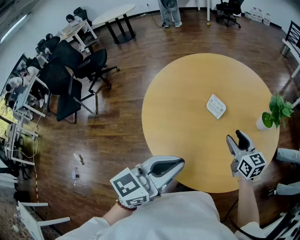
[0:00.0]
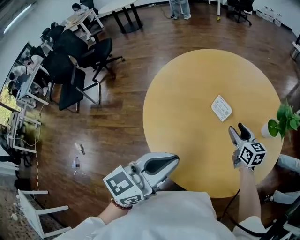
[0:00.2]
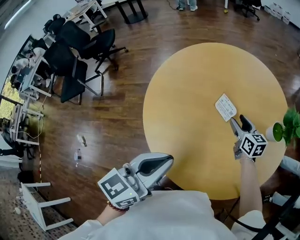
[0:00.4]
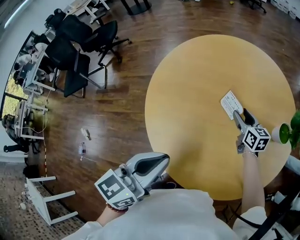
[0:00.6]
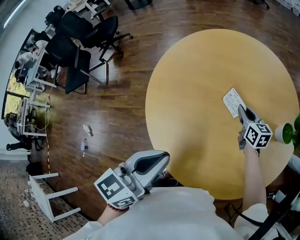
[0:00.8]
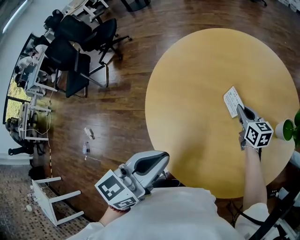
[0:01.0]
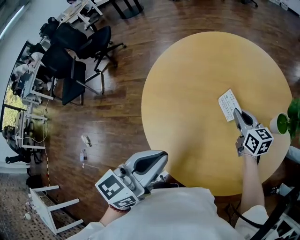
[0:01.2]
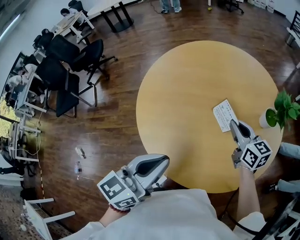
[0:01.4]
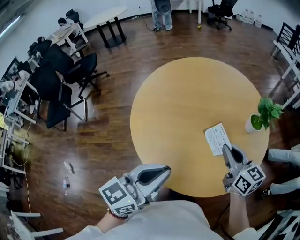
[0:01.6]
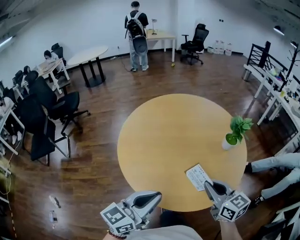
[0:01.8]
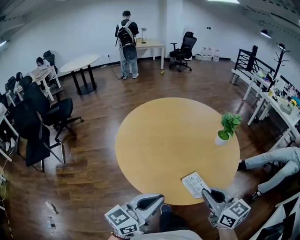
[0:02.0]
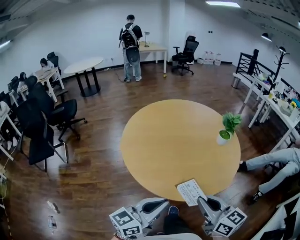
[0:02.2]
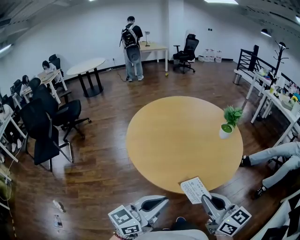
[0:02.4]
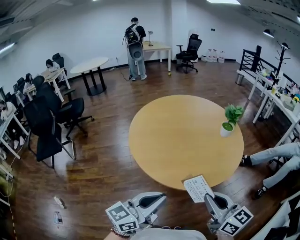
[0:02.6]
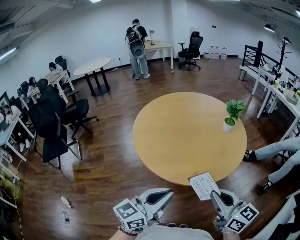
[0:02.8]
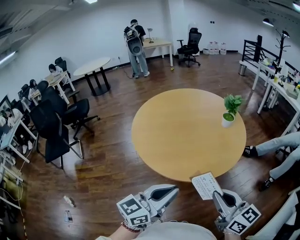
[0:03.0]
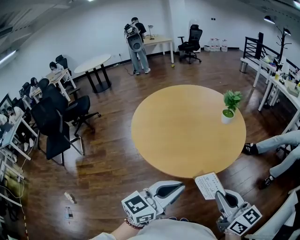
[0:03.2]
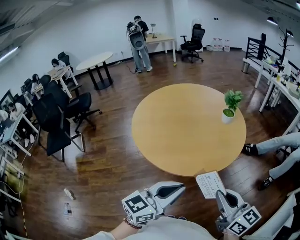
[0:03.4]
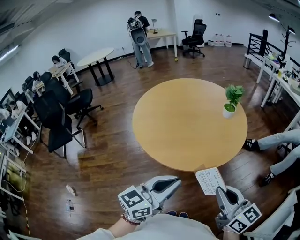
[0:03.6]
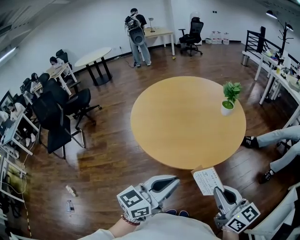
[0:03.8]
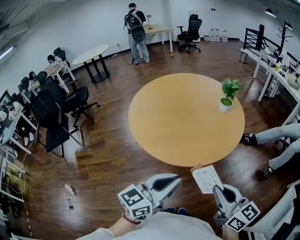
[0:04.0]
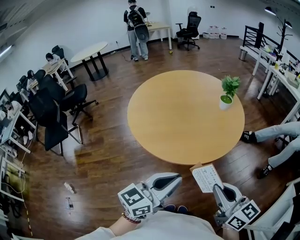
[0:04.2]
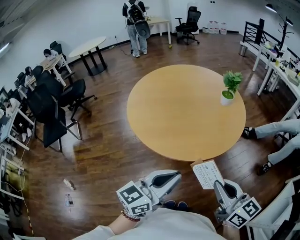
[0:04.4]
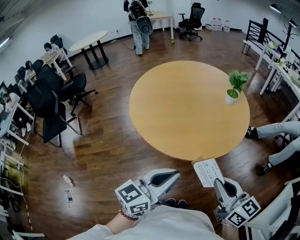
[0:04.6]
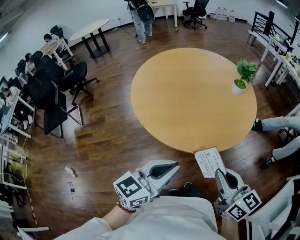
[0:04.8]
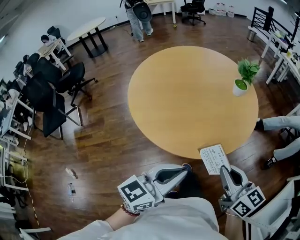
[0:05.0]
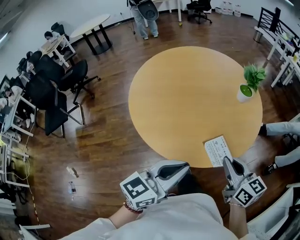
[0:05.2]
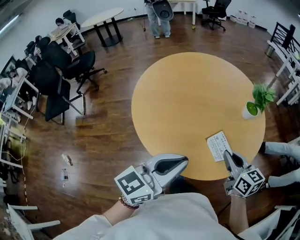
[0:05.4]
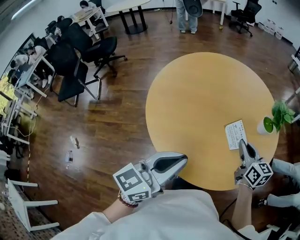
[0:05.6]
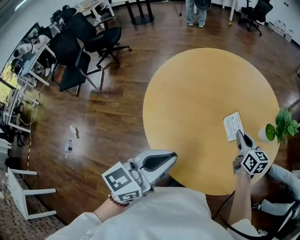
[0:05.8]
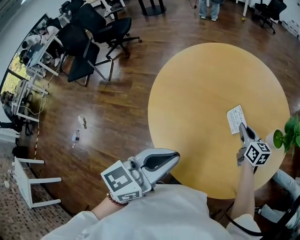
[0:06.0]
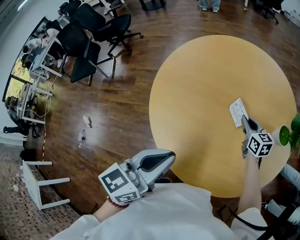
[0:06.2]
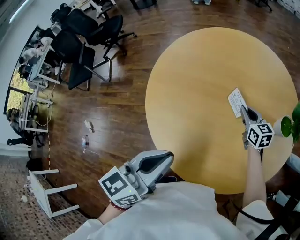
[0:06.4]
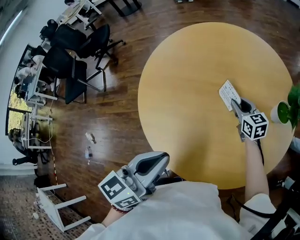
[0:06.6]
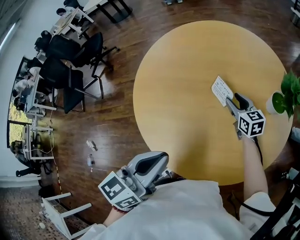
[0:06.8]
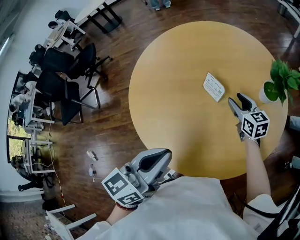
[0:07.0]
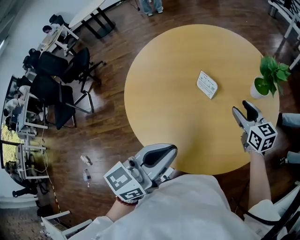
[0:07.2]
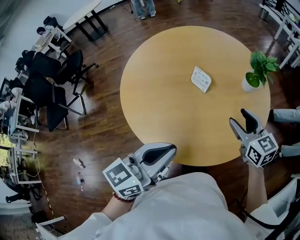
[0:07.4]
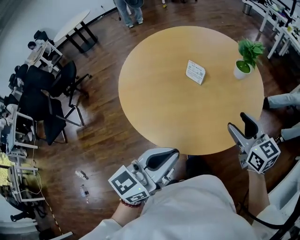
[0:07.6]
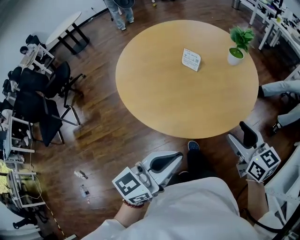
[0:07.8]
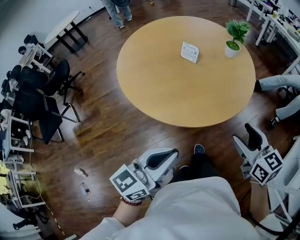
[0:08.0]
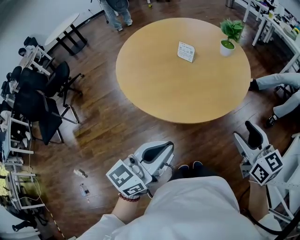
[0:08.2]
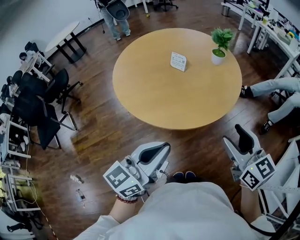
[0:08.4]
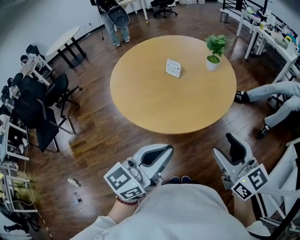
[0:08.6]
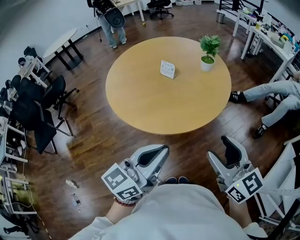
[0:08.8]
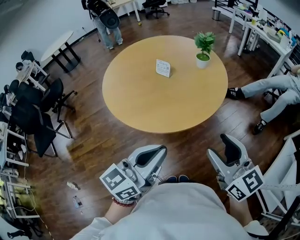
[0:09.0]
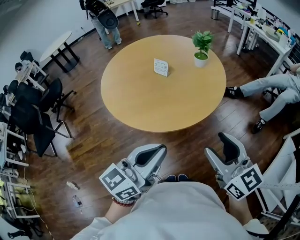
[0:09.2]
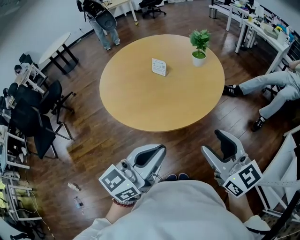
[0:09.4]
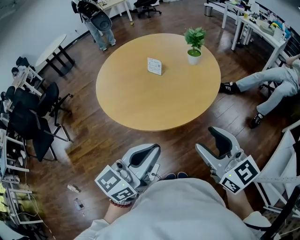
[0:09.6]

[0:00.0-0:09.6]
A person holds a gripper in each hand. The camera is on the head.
0.0 to 1.6 s: The left gripper moves about 10 cm forward and comes back. The right gripper shifts about 5 cm upward, reaches roughly 20 cm forward, then returns, and closes its fingers.
1.6 to 3.2 s: The right gripper heads backward, covering about 40 cm; the left gripper heads backward, covering about 25 cm.
3.2 to 4.8 s: The right gripper moves forward and downward, approximately 10 cm. Meanwhile the left gripper goes roughly 10 cm downward and to the left.
4.8 to 6.4 s: The right gripper travels forward and downward by about 60 cm, and changes its angle by roughly 30 degrees. Meanwhile the left gripper travels forward by about 30 cm, and swivels roughly 30 degrees.
6.4 to 8.0 s: The right gripper moves about 60 cm, rotates approximately 20 degrees, and opens. The left gripper changes place by approximately 30 cm, and rotates about 40 degrees.
8.0 to 9.6 s: The left gripper goes some 15 cm to the right and upward. Meanwhile the right gripper goes some 15 cm upward and backward.

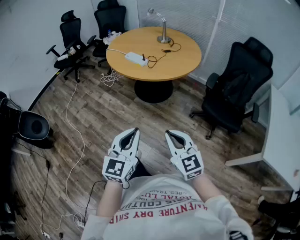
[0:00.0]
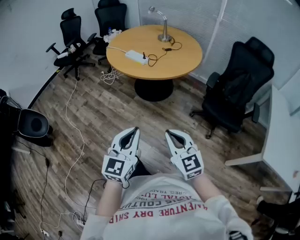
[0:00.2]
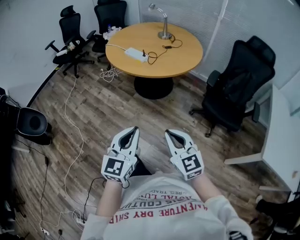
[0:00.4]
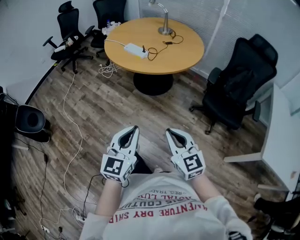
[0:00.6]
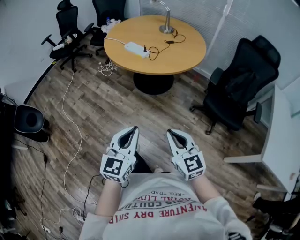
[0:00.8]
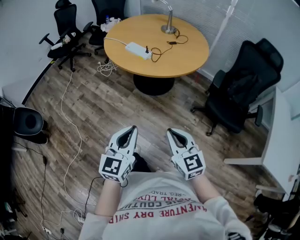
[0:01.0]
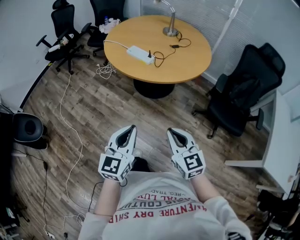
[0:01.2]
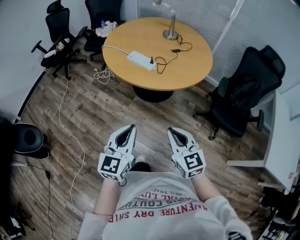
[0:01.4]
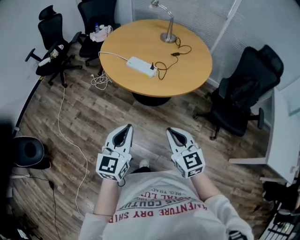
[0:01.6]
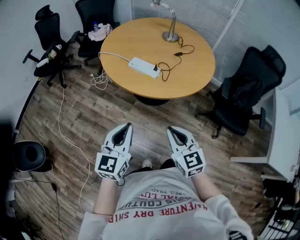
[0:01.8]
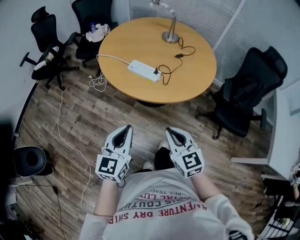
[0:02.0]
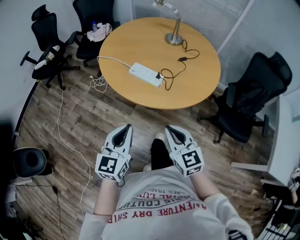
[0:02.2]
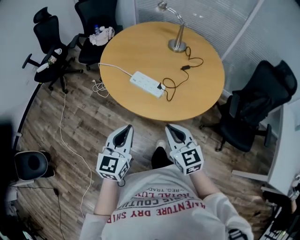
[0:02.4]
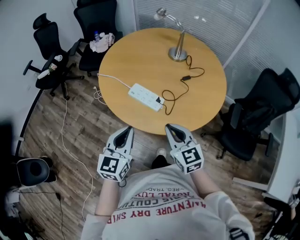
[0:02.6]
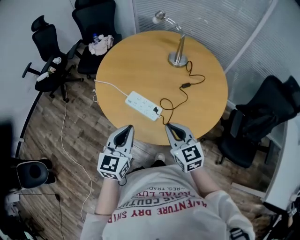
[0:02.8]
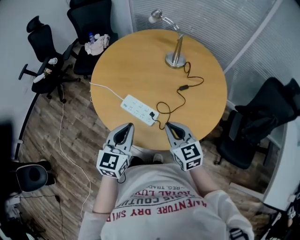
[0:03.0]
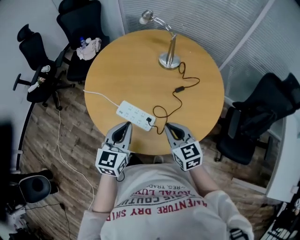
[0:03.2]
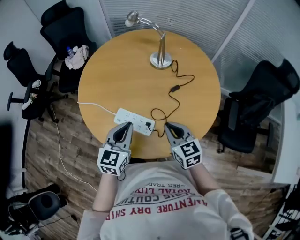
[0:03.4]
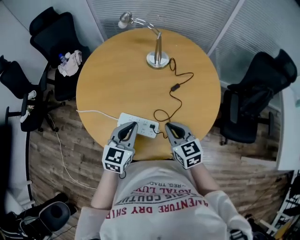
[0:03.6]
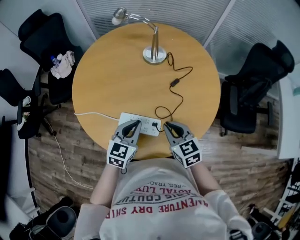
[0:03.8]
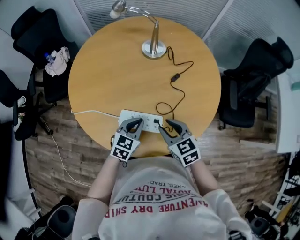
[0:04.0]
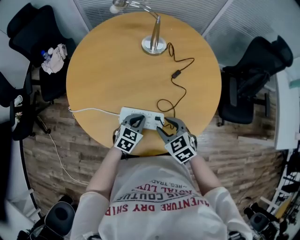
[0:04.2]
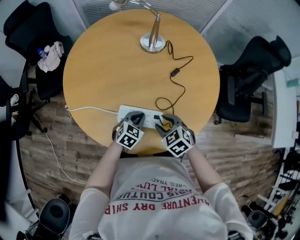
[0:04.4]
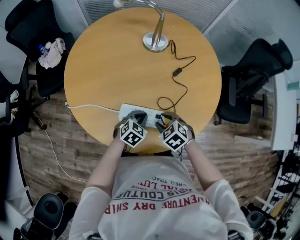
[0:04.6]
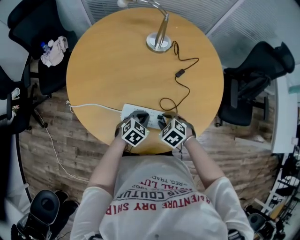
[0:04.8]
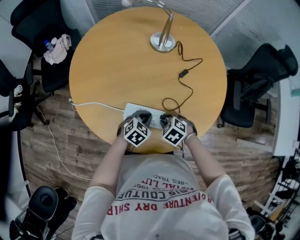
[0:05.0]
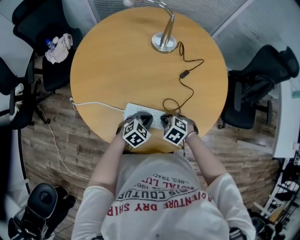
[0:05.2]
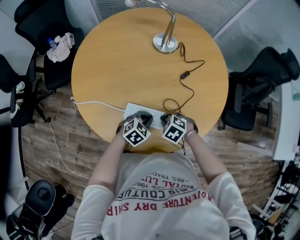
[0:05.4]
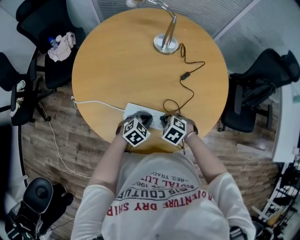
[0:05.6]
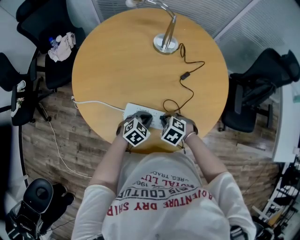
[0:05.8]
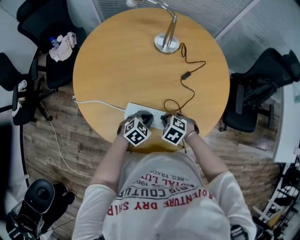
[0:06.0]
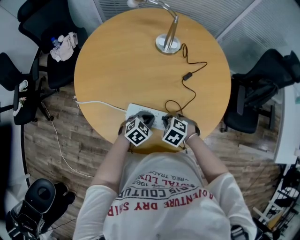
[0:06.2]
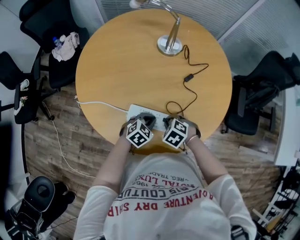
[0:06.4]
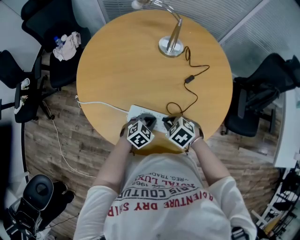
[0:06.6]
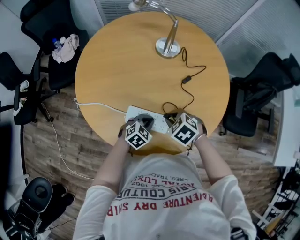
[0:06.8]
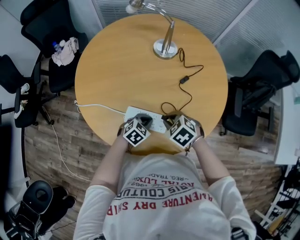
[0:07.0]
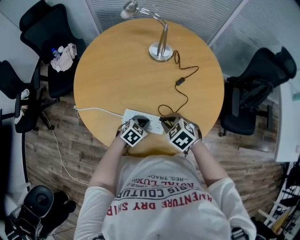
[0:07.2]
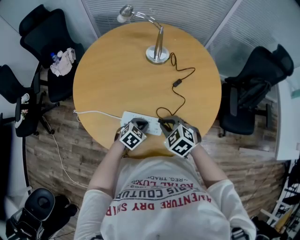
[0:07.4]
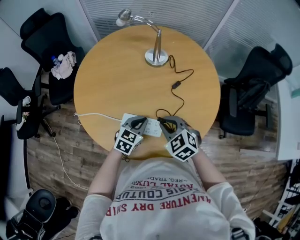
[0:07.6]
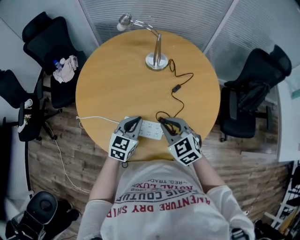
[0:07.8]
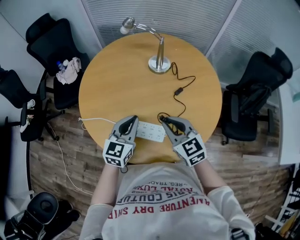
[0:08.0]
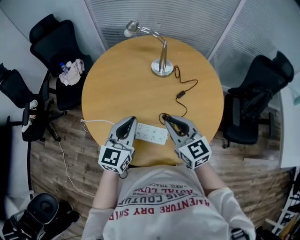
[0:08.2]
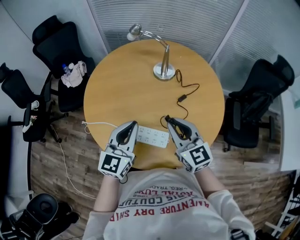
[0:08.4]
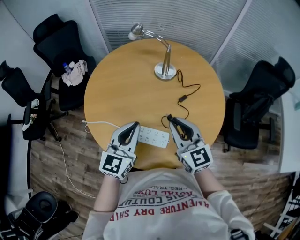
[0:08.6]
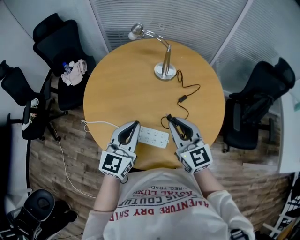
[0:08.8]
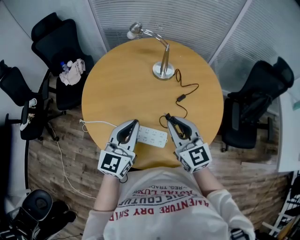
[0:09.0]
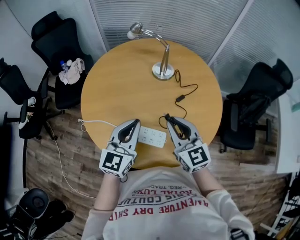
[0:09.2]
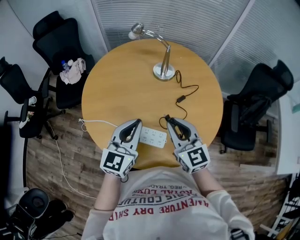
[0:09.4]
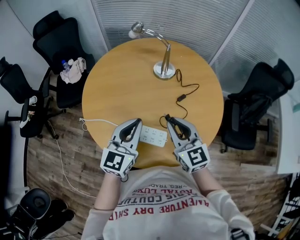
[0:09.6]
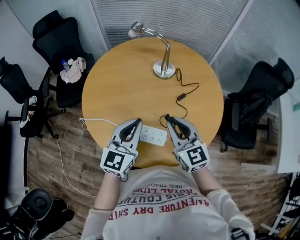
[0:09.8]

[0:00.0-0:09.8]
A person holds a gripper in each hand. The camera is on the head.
0.0 to 1.4 s: Both grippers travel together forward and to the left, about 20 cm.
1.4 to 2.8 s: Both grippers travel together forward, some 35 cm.
2.8 to 4.2 s: The left gripper heads downward, covering approximately 25 cm, and rotates some 50 degrees, while the right gripper moves downward, about 10 cm, swivels about 30 degrees, and opens.
4.2 to 5.6 s: The right gripper goes approximately 10 cm downward, rotates approximately 30 degrees, and closes up.
5.6 to 7.0 s: The right gripper goes approximately 10 cm upward.
7.0 to 8.4 s: The right gripper moves upward, some 20 cm, and angles its fingers upward, by roughly 50 degrees, while the left gripper is displaced upward by some 30 cm, and angles its fingers upward, by about 40 degrees.
8.4 to 9.8 s: The grippers make only small movements.

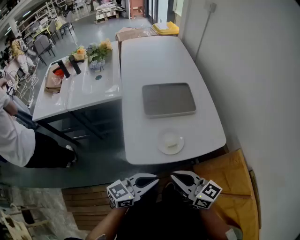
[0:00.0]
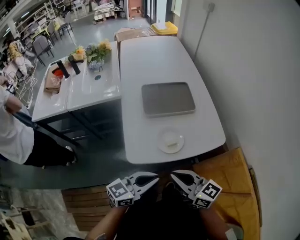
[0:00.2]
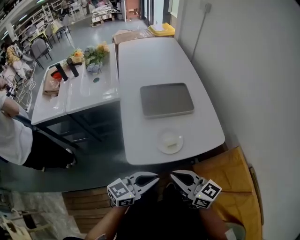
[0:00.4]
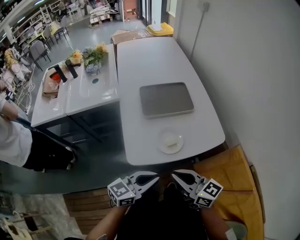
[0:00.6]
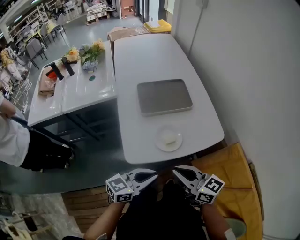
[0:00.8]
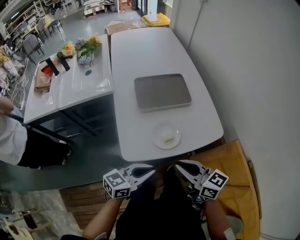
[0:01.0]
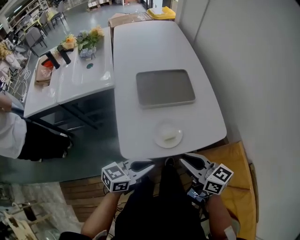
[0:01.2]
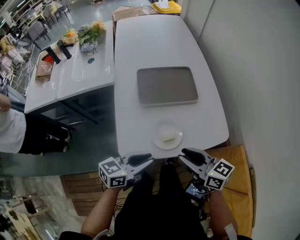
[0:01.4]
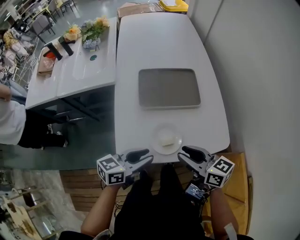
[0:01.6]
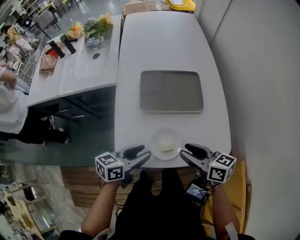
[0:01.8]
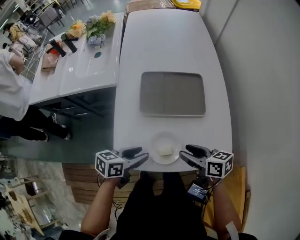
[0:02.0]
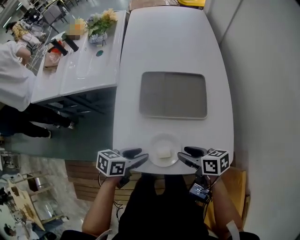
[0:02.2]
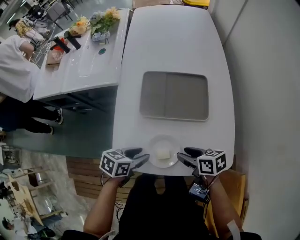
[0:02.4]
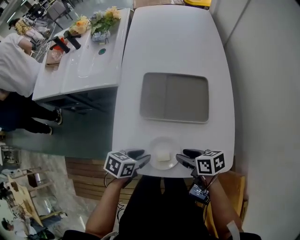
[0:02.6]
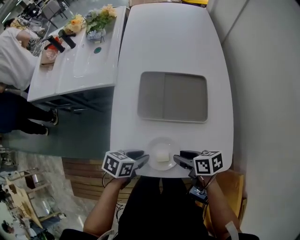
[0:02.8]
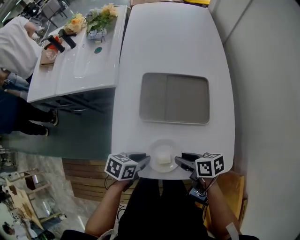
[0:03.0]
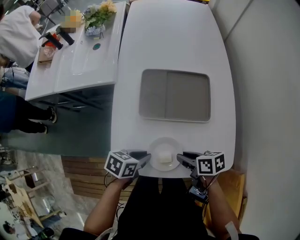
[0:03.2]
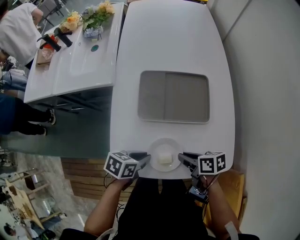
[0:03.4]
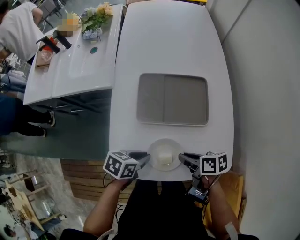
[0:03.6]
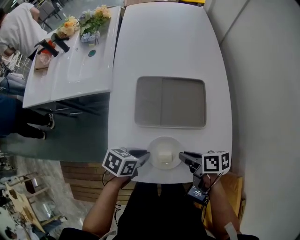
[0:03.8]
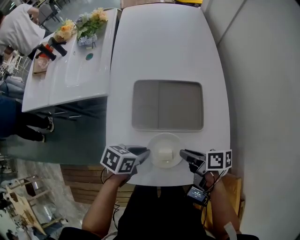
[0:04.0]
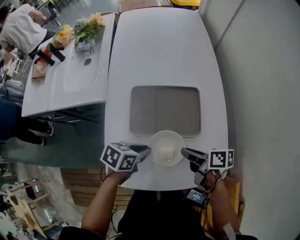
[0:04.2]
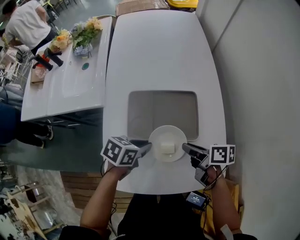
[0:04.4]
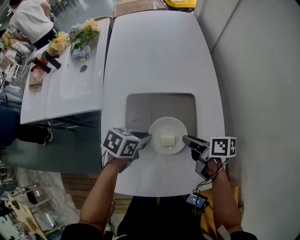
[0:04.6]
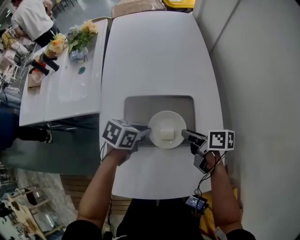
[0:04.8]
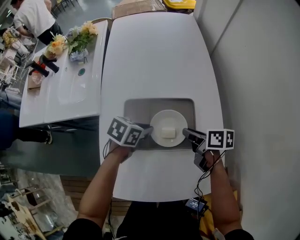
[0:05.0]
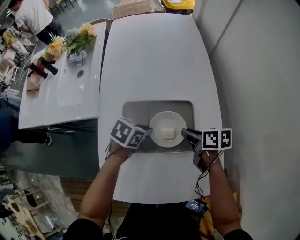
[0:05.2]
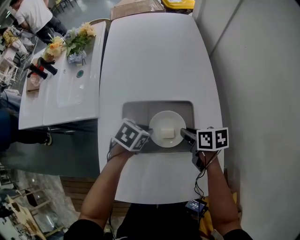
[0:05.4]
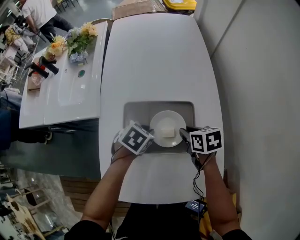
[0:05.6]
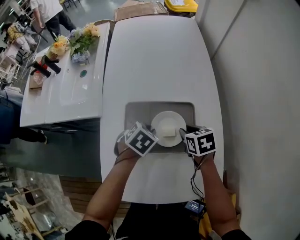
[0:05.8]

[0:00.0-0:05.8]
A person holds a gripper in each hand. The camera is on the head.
0.0 to 1.4 s: The right gripper is displaced forward and to the right by some 10 cm, and opens up. The left gripper is displaced forward by about 10 cm.
1.4 to 2.8 s: Both grippers travel together downward, approximately 15 cm. The left gripper tilts its fingers roughly 30 degrees downward; the right gripper changes its angle by approximately 40 degrees.
2.8 to 4.4 s: The left gripper moves about 15 cm, and closes up. Meanwhile the right gripper moves some 15 cm, changes its angle by roughly 20 degrees, and closes.
4.4 to 5.8 s: The right gripper shifts by roughly 15 cm, and turns by about 50 degrees. The left gripper moves roughly 10 cm, and swivels about 30 degrees.
